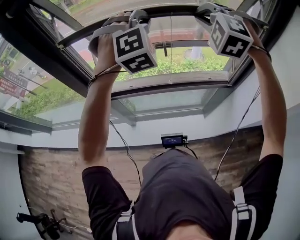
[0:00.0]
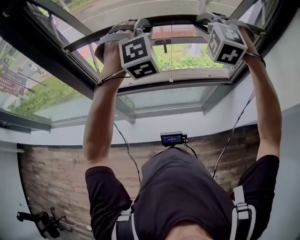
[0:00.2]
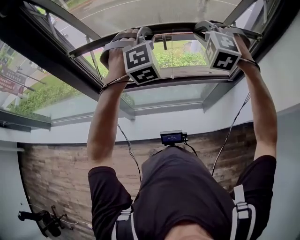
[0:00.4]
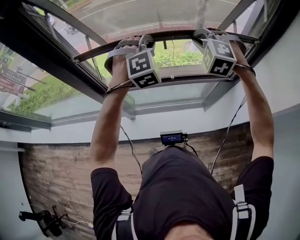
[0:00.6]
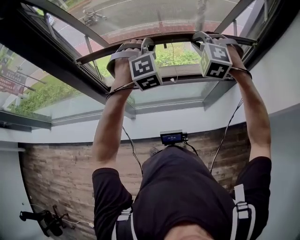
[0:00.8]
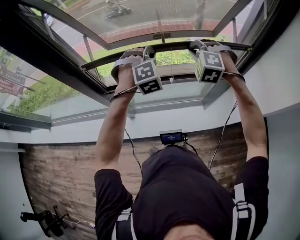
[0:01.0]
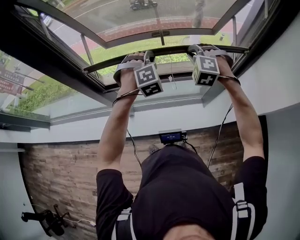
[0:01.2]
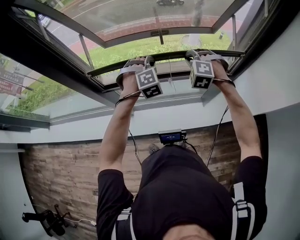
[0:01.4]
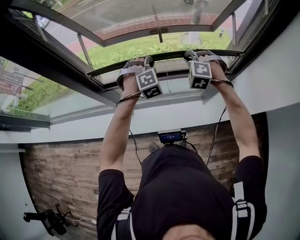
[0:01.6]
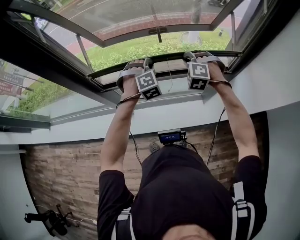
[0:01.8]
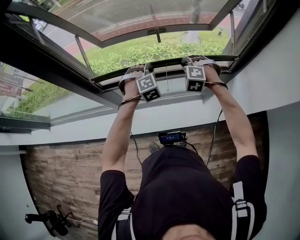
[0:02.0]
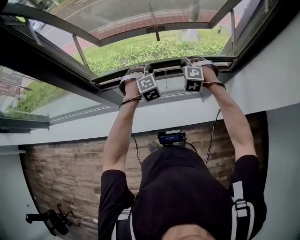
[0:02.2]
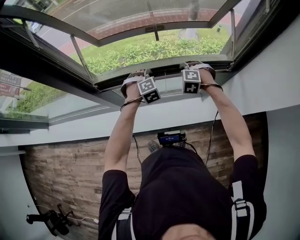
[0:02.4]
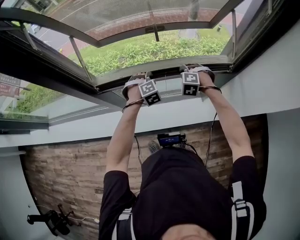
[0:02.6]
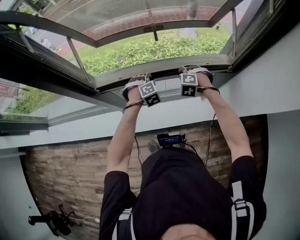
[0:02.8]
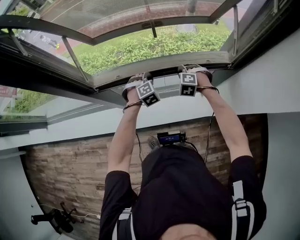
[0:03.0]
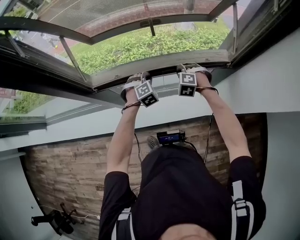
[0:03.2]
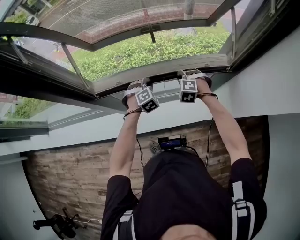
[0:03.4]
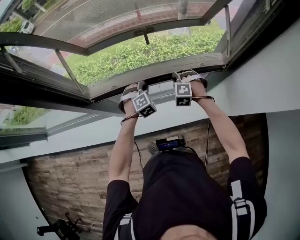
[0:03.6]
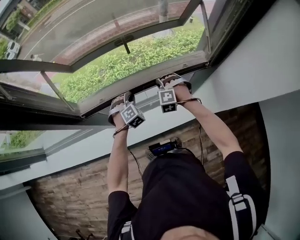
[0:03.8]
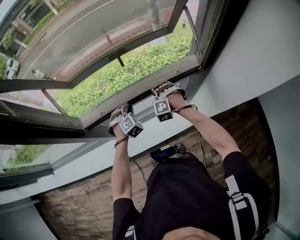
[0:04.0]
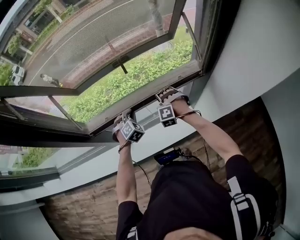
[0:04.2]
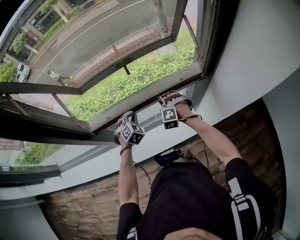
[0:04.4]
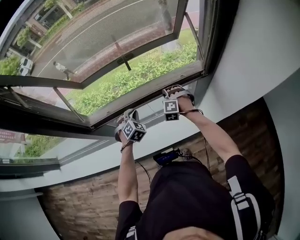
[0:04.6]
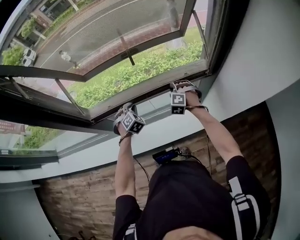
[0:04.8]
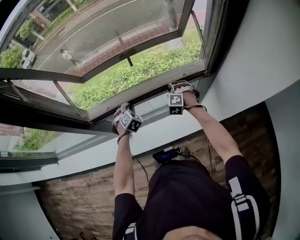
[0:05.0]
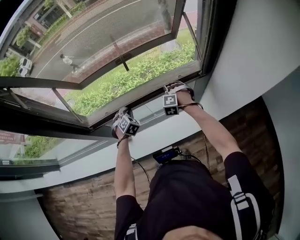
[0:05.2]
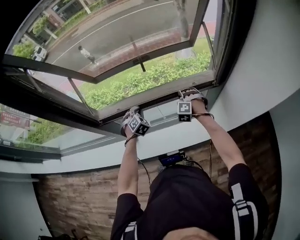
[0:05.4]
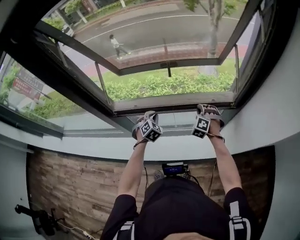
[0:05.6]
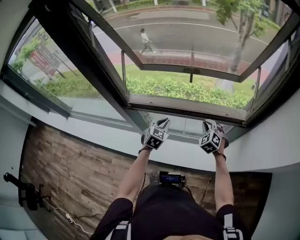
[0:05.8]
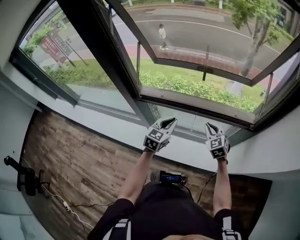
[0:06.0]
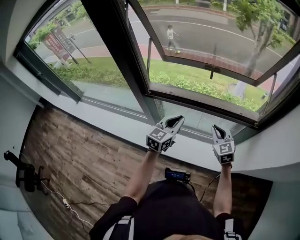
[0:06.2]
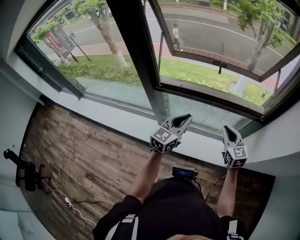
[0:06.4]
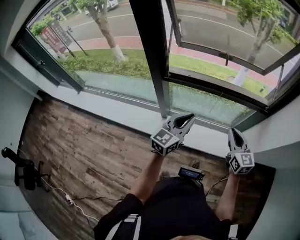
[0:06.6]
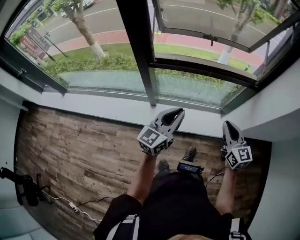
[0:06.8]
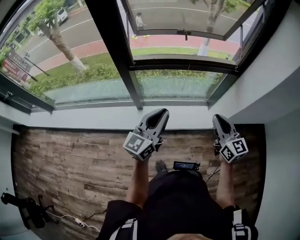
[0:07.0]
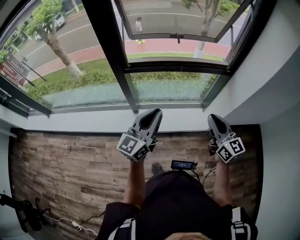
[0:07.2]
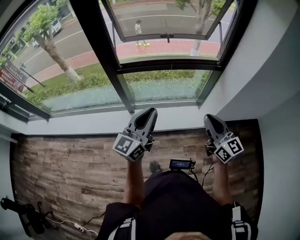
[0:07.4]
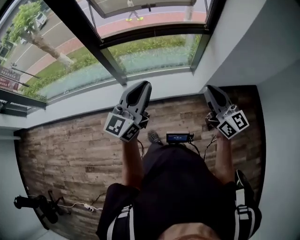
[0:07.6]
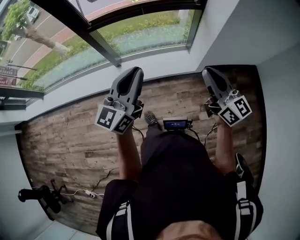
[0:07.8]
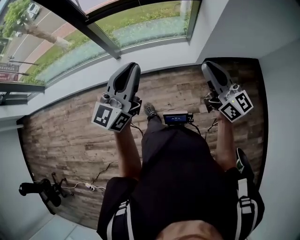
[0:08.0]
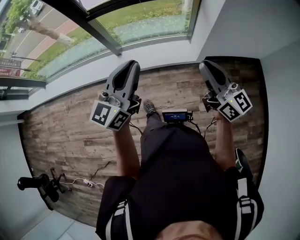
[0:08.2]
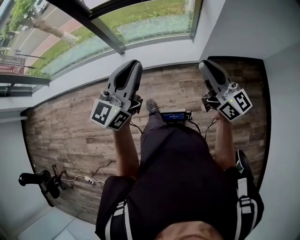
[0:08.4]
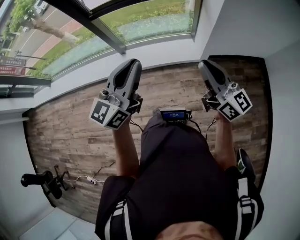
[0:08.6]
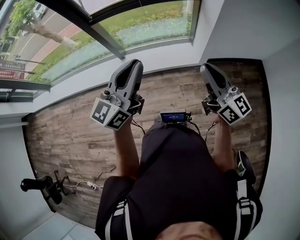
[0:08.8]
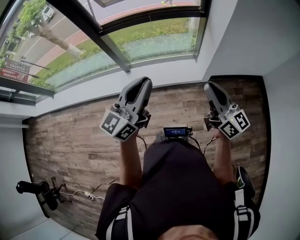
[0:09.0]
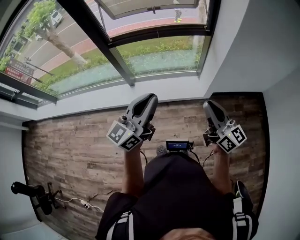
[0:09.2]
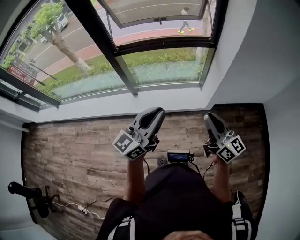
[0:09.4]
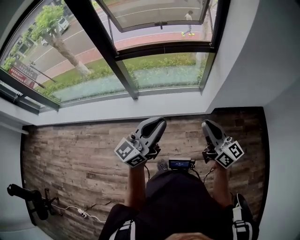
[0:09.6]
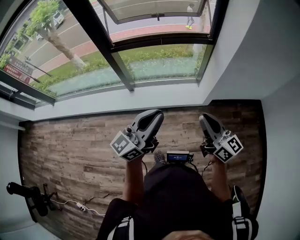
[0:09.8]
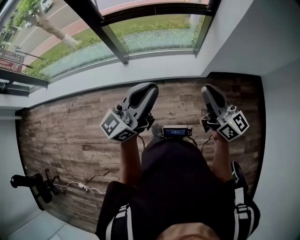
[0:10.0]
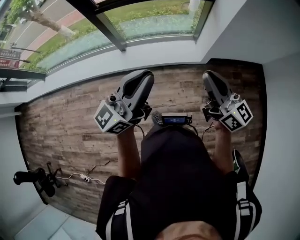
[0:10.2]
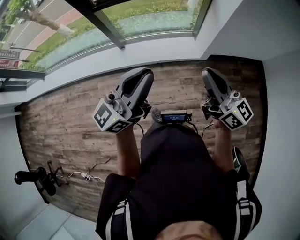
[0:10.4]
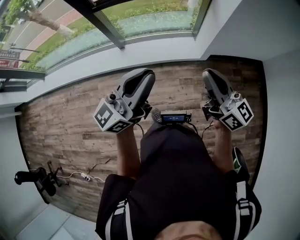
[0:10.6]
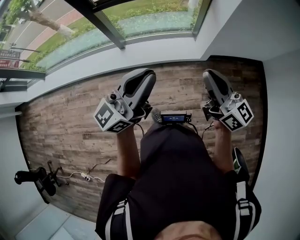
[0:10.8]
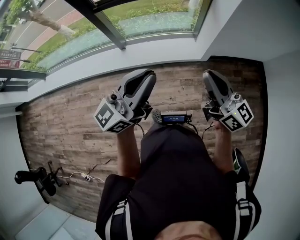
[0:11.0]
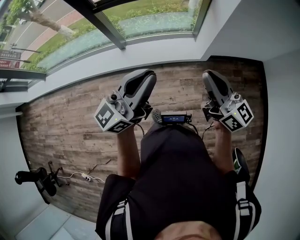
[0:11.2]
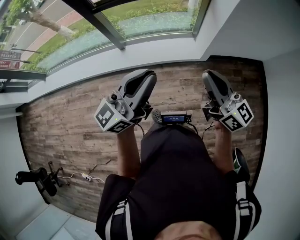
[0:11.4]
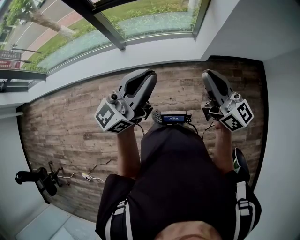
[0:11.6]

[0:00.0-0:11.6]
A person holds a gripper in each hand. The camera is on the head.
0:00.0 to 0:01.4: Both grippers move downward, about 30 cm. The left gripper changes its angle by approximately 20 degrees.
0:01.4 to 0:02.8: Both grippers move downward, some 15 cm.
0:02.8 to 0:04.4: The grippers move only a little.
0:04.4 to 0:05.8: The left gripper travels backward by approximately 5 cm, and rotates approximately 30 degrees; the right gripper changes place by about 5 cm, and turns by about 30 degrees.
0:05.8 to 0:07.2: The two grippers go about 40 cm backward and upward. The right gripper angles its fingers upward, by approximately 40 degrees. The left gripper points its fingers roughly 50 degrees further upward.
0:07.2 to 0:08.8: The right gripper heads backward and to the right, covering some 25 cm. The left gripper shifts roughly 25 cm to the right and backward.
0:08.8 to 0:11.6: The grippers move only a little.

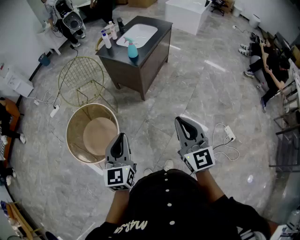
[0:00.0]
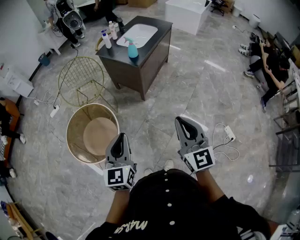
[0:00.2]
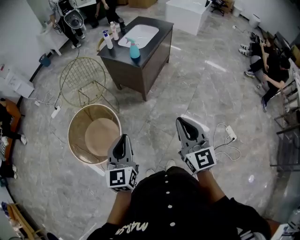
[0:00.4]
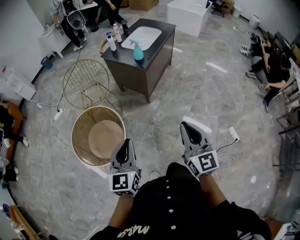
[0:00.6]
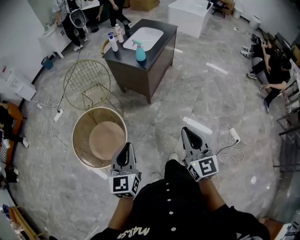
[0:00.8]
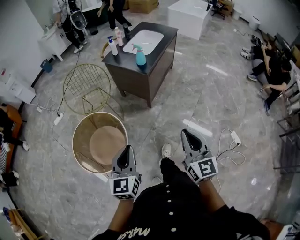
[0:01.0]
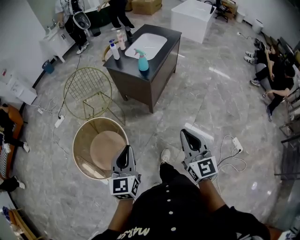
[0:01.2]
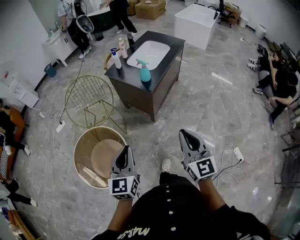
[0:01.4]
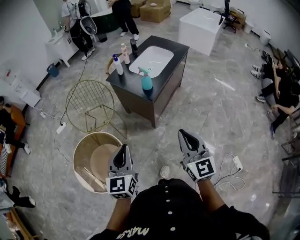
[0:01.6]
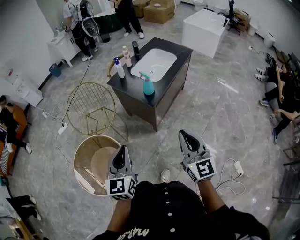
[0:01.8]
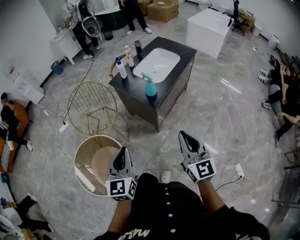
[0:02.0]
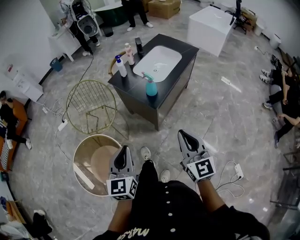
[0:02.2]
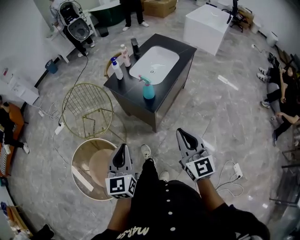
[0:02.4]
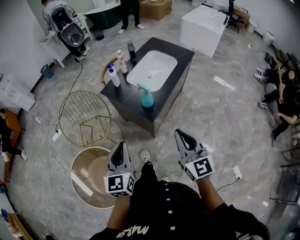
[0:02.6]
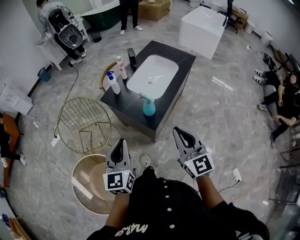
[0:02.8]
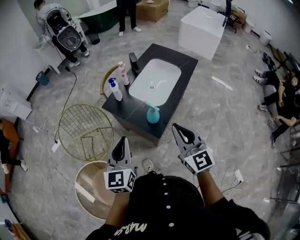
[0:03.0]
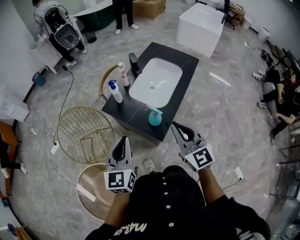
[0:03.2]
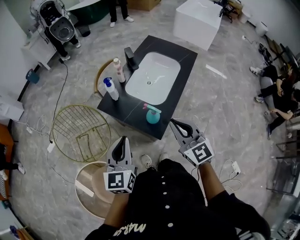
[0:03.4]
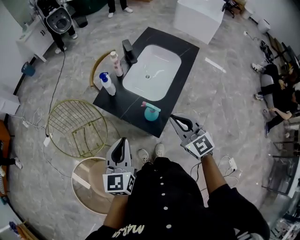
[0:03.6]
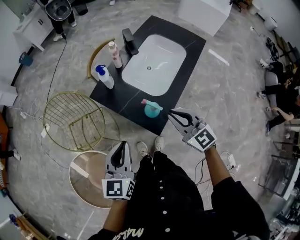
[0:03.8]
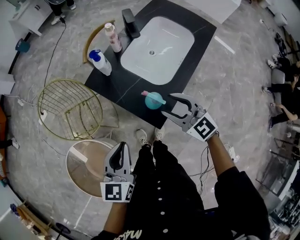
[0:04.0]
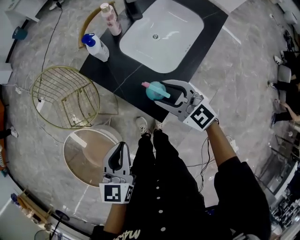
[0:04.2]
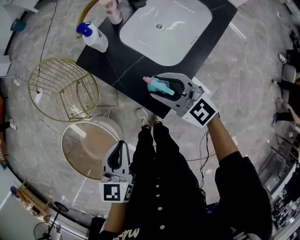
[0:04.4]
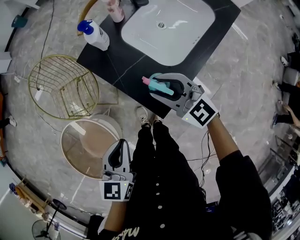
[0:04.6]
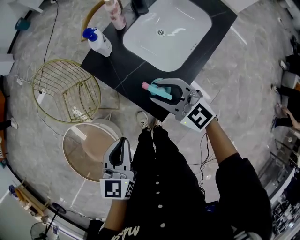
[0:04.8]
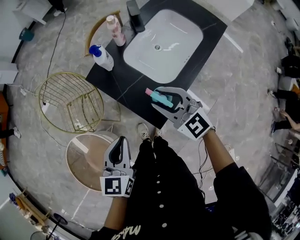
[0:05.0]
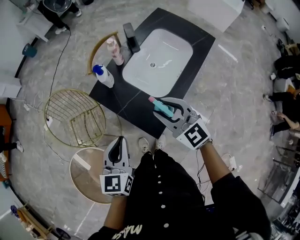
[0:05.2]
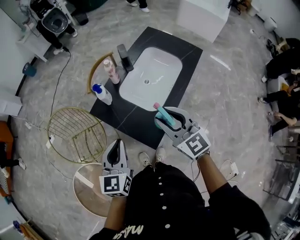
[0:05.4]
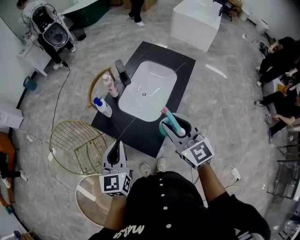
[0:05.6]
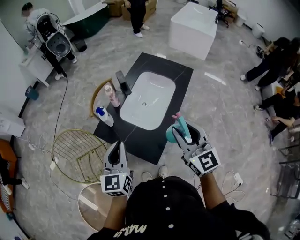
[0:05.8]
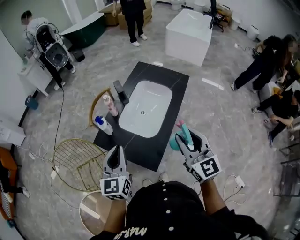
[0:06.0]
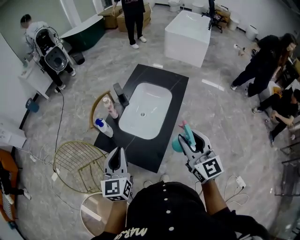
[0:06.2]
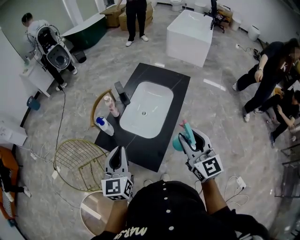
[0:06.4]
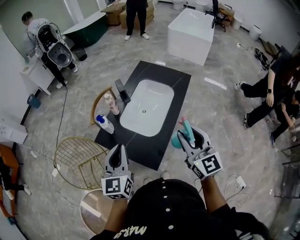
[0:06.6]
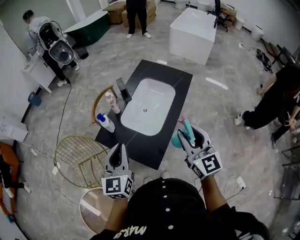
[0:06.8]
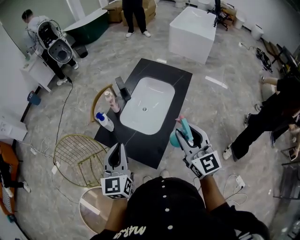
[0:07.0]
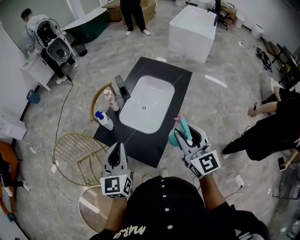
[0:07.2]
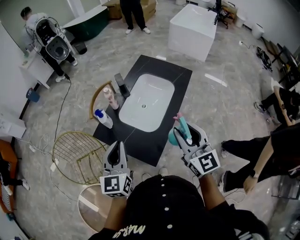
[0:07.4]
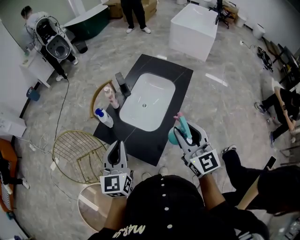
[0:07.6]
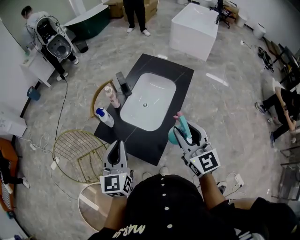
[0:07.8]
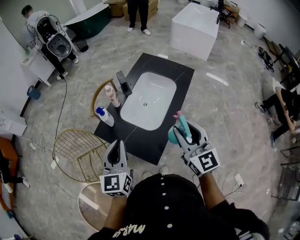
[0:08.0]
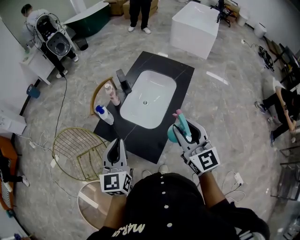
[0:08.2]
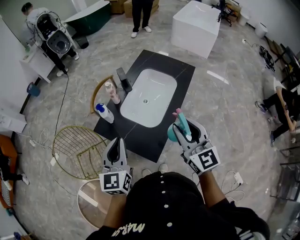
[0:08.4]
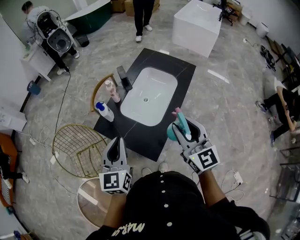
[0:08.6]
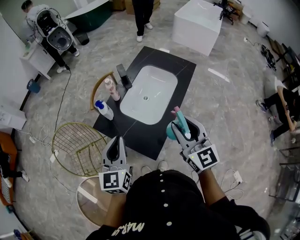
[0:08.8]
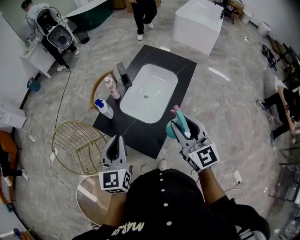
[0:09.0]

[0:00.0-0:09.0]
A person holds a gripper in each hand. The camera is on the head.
0:00.0 to 0:01.6: Both grippers travel together forward, roughly 20 cm.
0:01.6 to 0:03.0: The two grippers go about 30 cm forward.
0:03.0 to 0:04.4: The right gripper moves downward and forward, some 25 cm, changes its angle by about 40 degrees, and opens up; the left gripper is displaced downward by roughly 15 cm, and changes its angle by roughly 20 degrees.
0:04.4 to 0:06.0: The left gripper ends up about 20 cm from where it was, and swivels roughly 20 degrees. Meanwhile the right gripper moves upward, about 20 cm, and rotates roughly 50 degrees.
0:06.0 to 0:09.0: There are only small adjustments of the grippers.

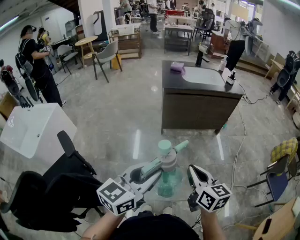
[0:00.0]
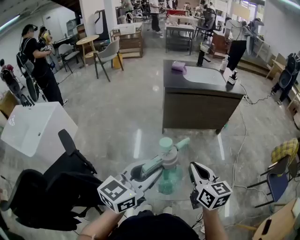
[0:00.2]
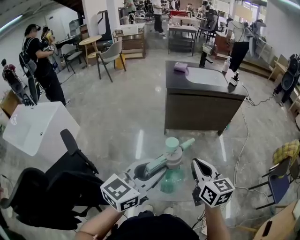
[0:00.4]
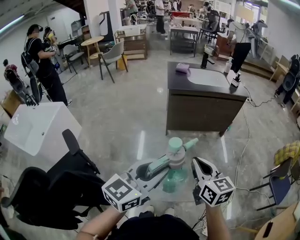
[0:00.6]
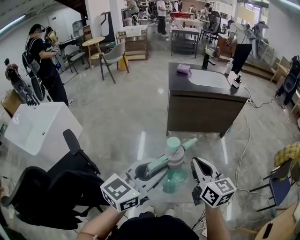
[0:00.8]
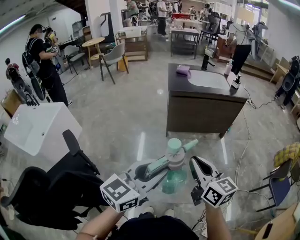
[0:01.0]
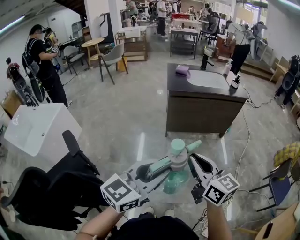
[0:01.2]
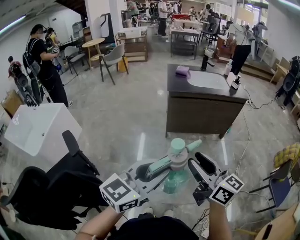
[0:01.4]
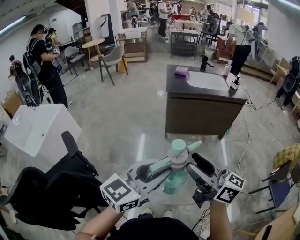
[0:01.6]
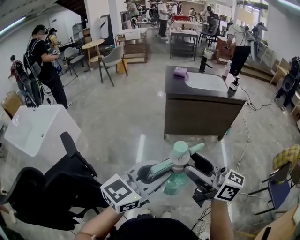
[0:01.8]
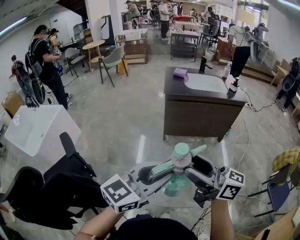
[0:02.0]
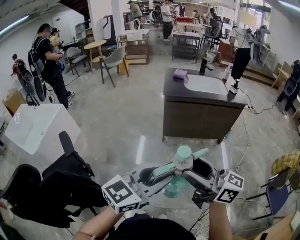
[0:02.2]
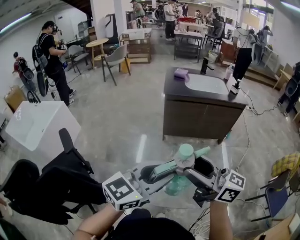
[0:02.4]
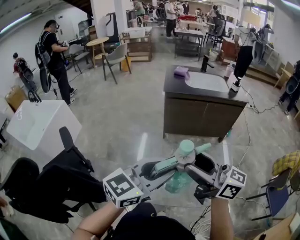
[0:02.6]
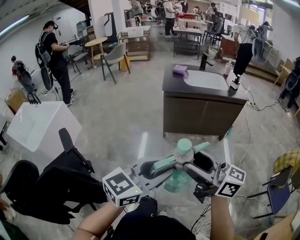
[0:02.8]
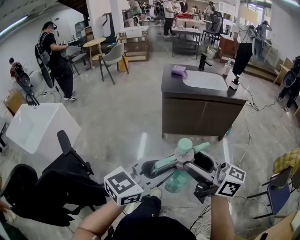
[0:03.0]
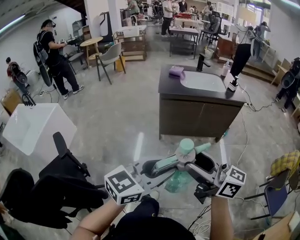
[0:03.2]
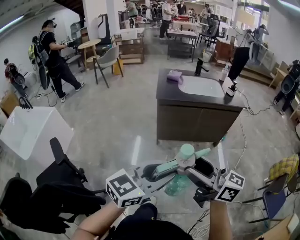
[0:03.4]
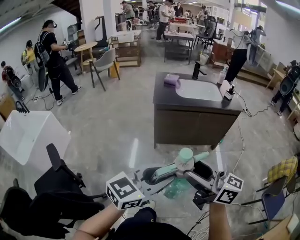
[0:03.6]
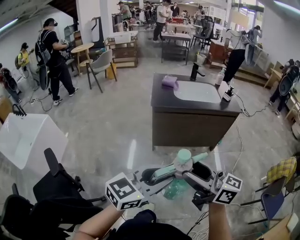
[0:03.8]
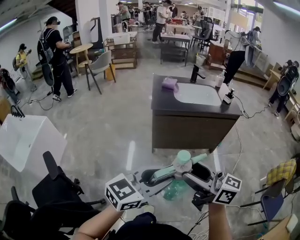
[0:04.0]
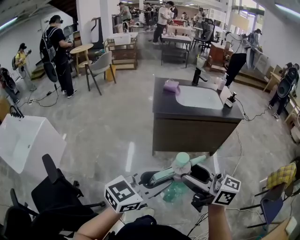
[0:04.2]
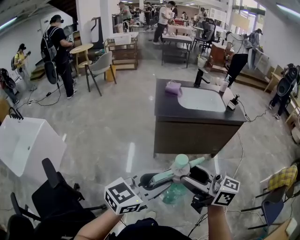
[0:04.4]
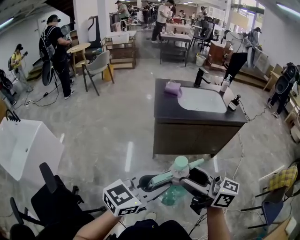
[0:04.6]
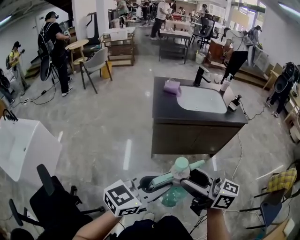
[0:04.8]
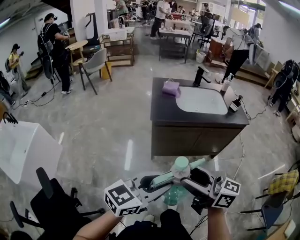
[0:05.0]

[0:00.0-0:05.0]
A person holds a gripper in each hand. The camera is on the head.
0:00.0 to 0:01.6: The right gripper travels upward by some 10 cm, rotates about 40 degrees, and opens up.
0:01.6 to 0:03.4: The right gripper heads forward and to the right, covering about 10 cm. Meanwhile the left gripper shifts about 15 cm to the right and forward.
0:03.4 to 0:05.0: The grippers both shift forward by about 20 cm.
